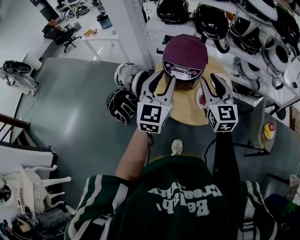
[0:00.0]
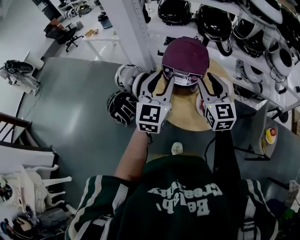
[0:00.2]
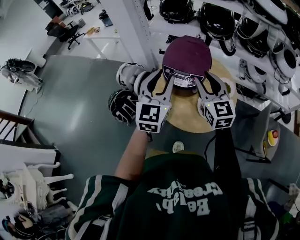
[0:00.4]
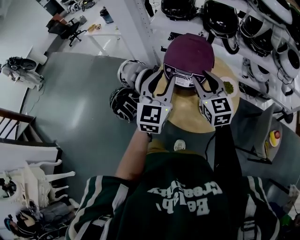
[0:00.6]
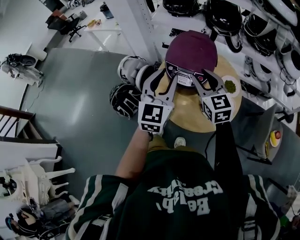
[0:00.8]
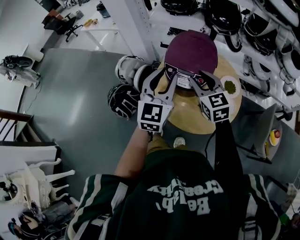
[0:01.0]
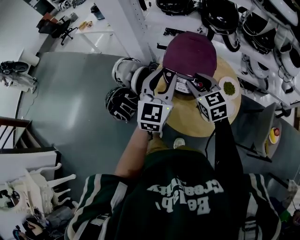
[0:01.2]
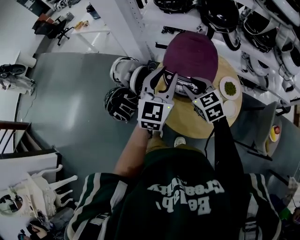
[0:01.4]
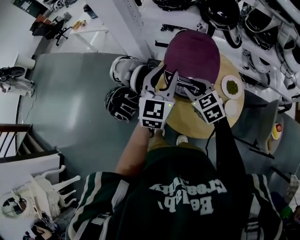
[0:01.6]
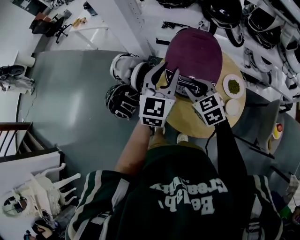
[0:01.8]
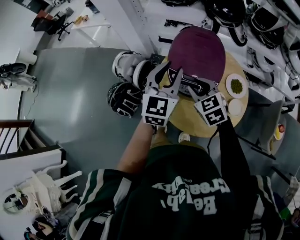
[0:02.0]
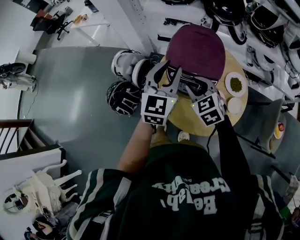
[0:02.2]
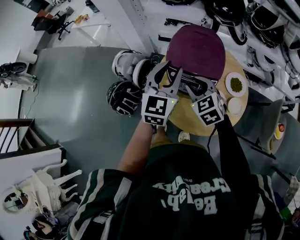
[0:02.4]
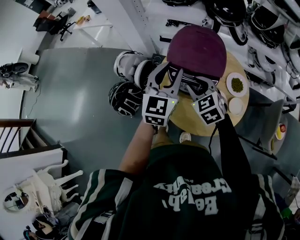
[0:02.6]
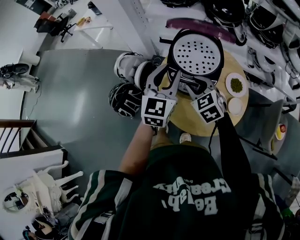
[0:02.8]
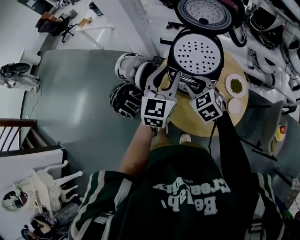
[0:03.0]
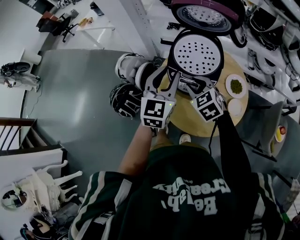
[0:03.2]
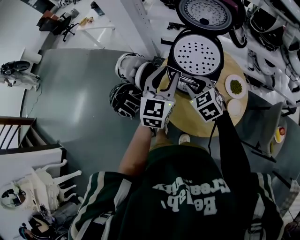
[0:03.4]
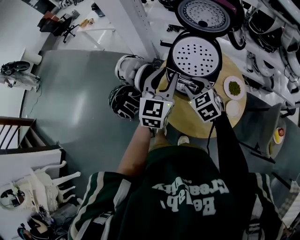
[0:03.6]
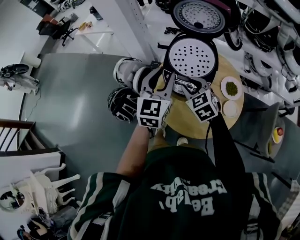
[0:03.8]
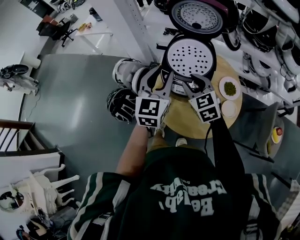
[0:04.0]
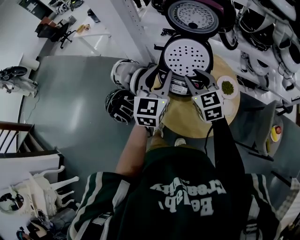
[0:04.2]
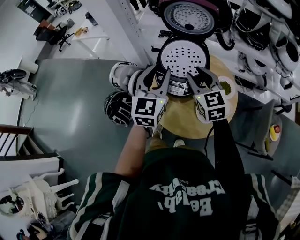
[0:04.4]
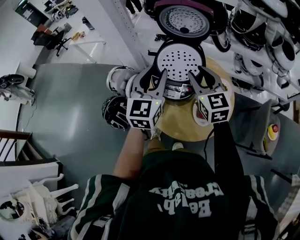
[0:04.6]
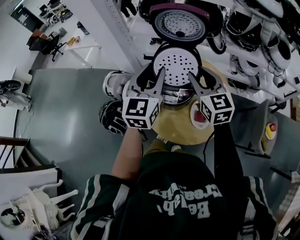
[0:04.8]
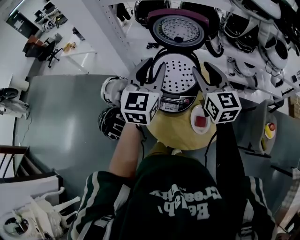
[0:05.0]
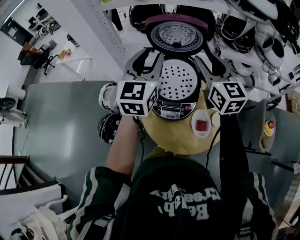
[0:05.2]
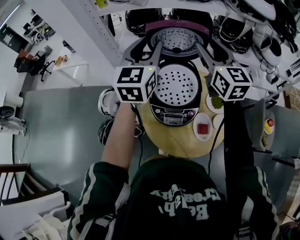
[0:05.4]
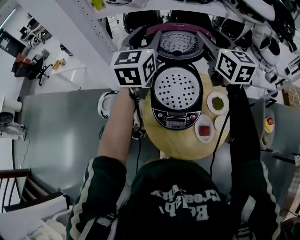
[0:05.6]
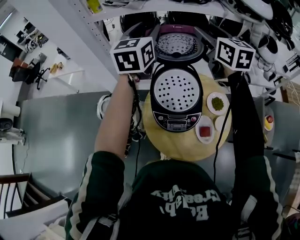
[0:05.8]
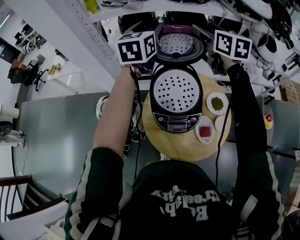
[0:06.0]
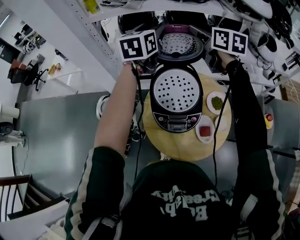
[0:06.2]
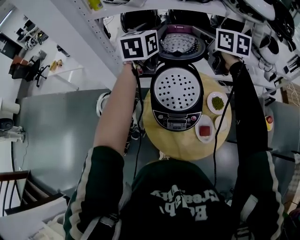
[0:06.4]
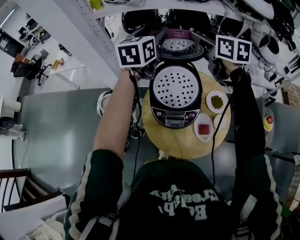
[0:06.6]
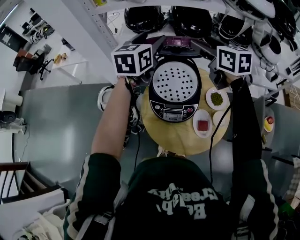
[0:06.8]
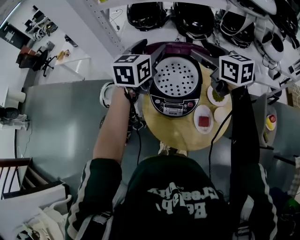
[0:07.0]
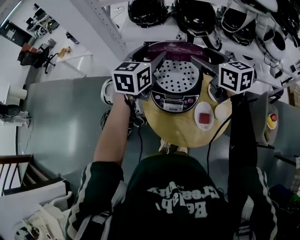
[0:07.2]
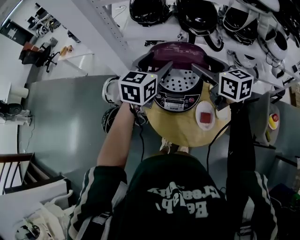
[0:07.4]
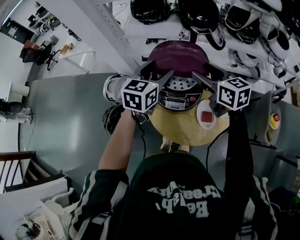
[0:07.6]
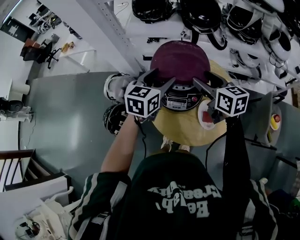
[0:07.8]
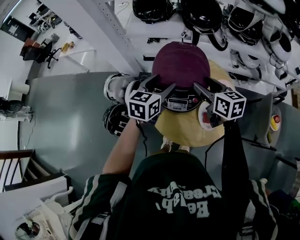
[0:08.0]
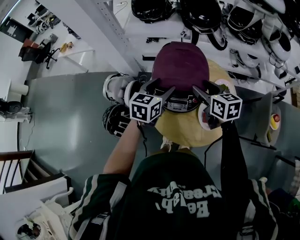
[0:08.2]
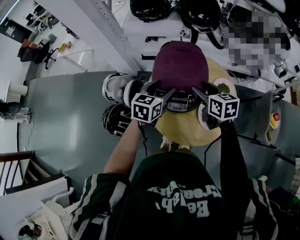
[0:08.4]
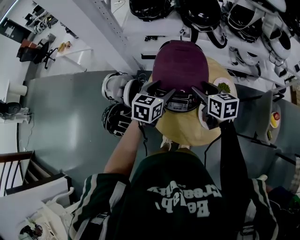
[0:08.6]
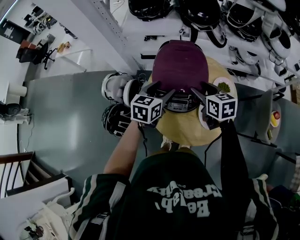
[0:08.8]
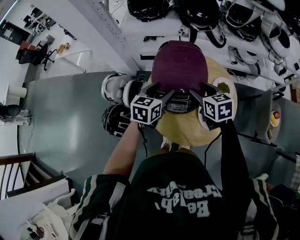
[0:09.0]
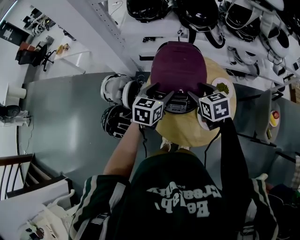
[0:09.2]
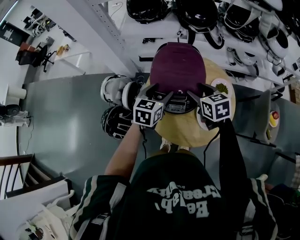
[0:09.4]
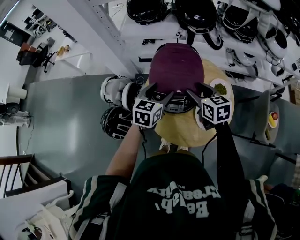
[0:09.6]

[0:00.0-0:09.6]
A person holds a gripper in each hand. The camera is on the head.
0:00.0 to 0:01.6: The right gripper goes about 25 cm downward, forward and to the left, and angles its fingers downward, by approximately 30 degrees; the left gripper heads forward, covering some 20 cm.
0:01.6 to 0:03.2: There are only small adjustments of the grippers.
0:03.2 to 0:04.8: The right gripper heads upward and to the right, covering about 20 cm, and changes its angle by about 40 degrees. Meanwhile the left gripper heads upward, covering about 10 cm.
0:04.8 to 0:06.4: The right gripper shifts some 25 cm forward and upward, rotates approximately 20 degrees, and opens, while the left gripper is displaced forward by some 30 cm, and opens its fingers.
0:06.4 to 0:08.0: The two grippers go roughly 30 cm backward and downward.
0:08.0 to 0:09.6: The left gripper heads downward, covering approximately 5 cm.

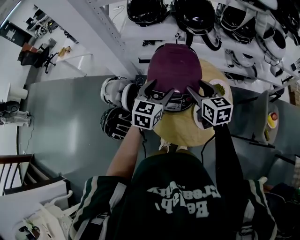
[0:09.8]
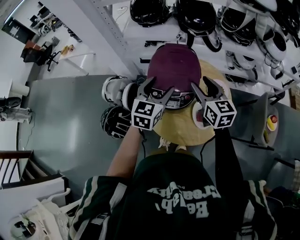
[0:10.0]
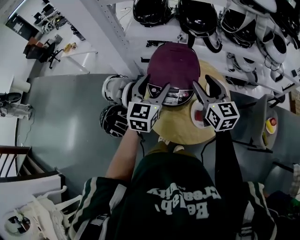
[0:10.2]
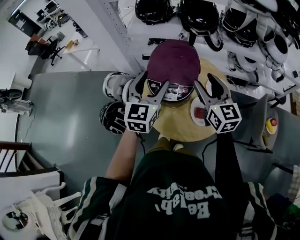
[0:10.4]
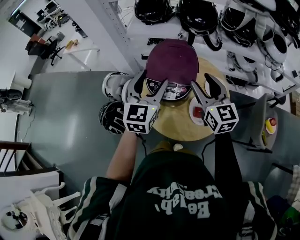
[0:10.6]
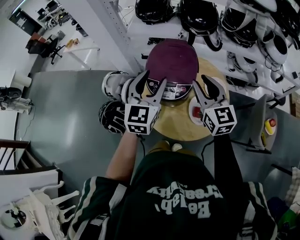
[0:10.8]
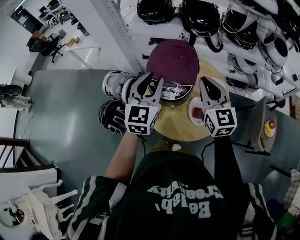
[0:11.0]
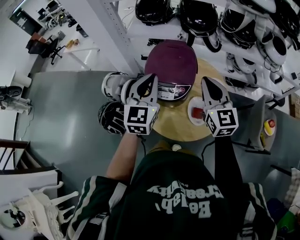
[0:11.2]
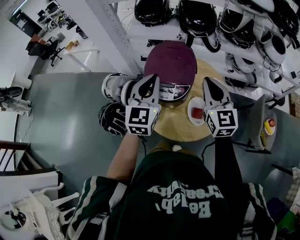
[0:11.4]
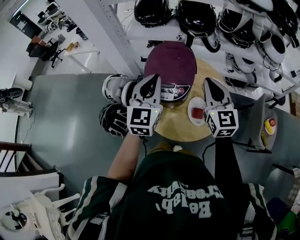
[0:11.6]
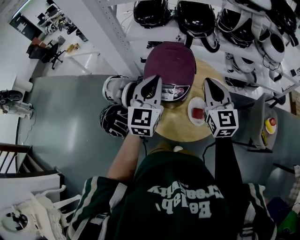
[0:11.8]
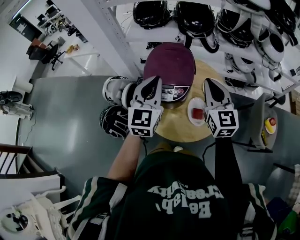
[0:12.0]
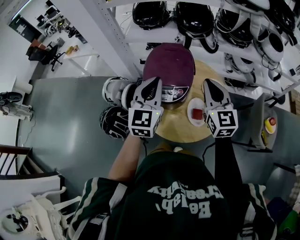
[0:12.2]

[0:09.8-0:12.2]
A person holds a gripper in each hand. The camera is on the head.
0:09.8 to 0:11.0: The grippers both shift upward and backward by about 10 cm. The right gripper rotates approximately 30 degrees, and closes, while the left gripper changes its angle by roughly 20 degrees, and closes up.
0:11.0 to 0:12.2: The left gripper closes its fingers.

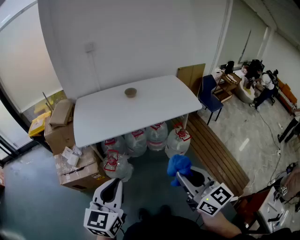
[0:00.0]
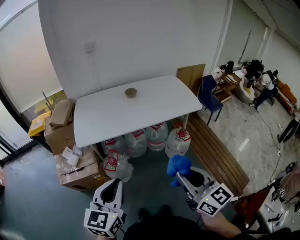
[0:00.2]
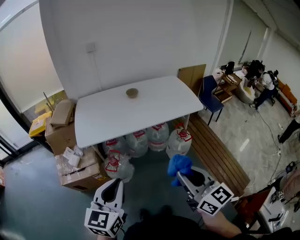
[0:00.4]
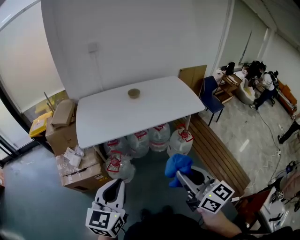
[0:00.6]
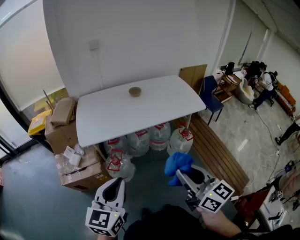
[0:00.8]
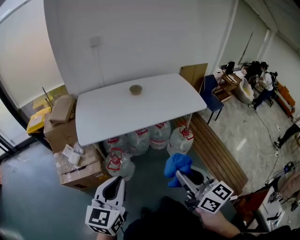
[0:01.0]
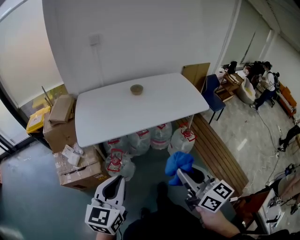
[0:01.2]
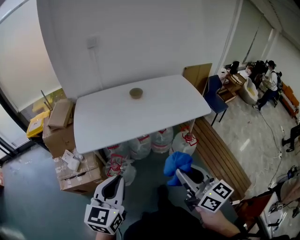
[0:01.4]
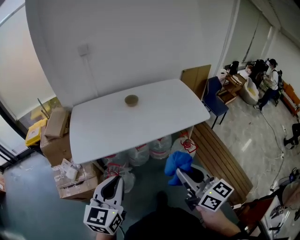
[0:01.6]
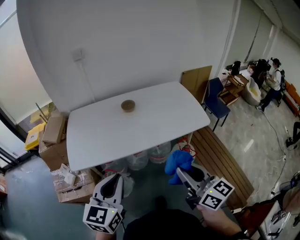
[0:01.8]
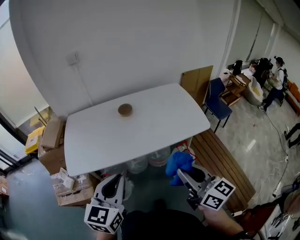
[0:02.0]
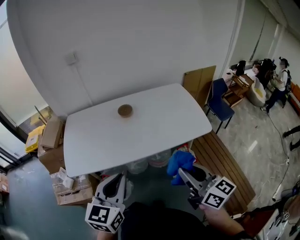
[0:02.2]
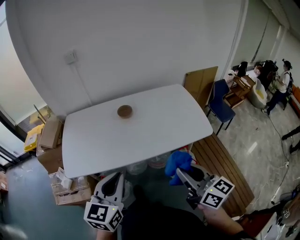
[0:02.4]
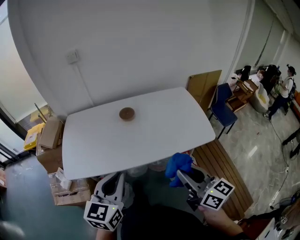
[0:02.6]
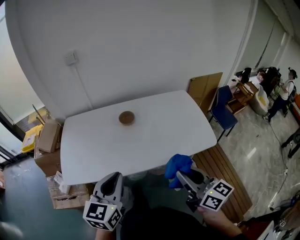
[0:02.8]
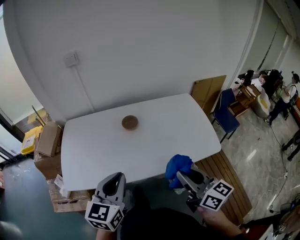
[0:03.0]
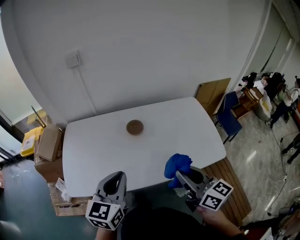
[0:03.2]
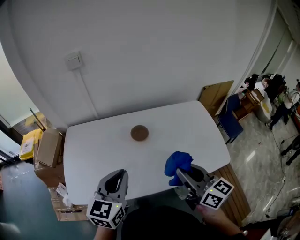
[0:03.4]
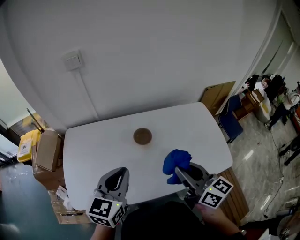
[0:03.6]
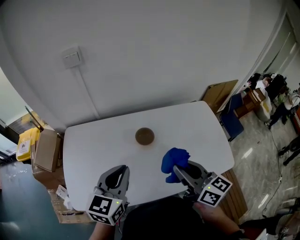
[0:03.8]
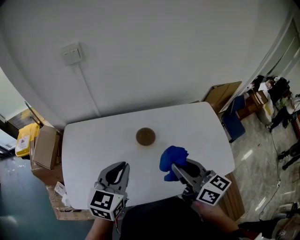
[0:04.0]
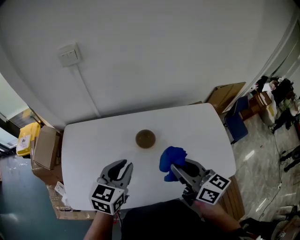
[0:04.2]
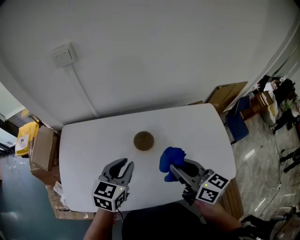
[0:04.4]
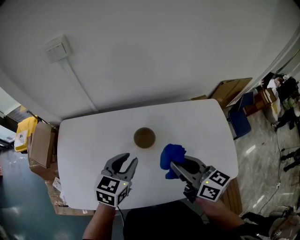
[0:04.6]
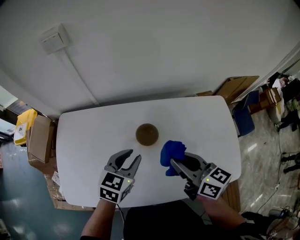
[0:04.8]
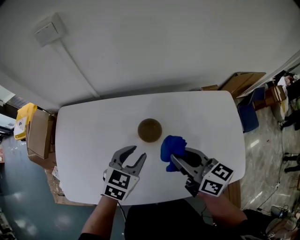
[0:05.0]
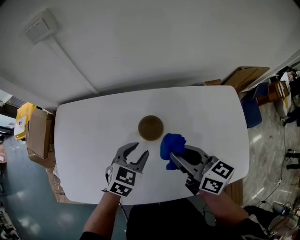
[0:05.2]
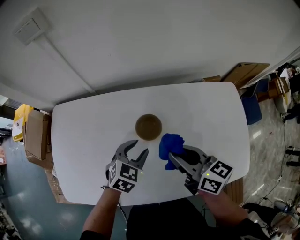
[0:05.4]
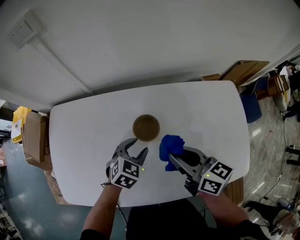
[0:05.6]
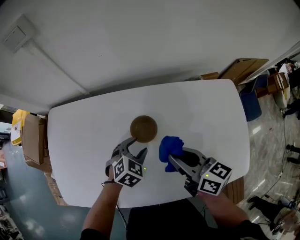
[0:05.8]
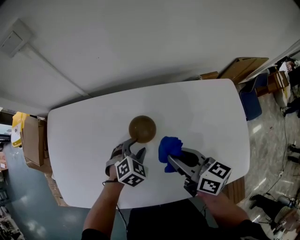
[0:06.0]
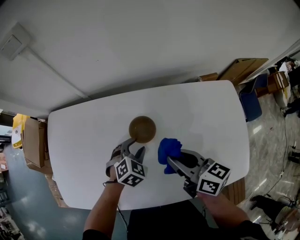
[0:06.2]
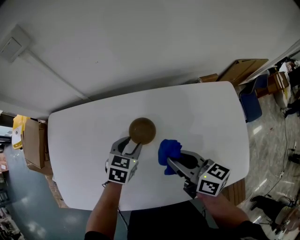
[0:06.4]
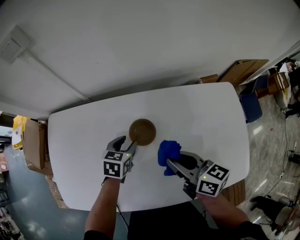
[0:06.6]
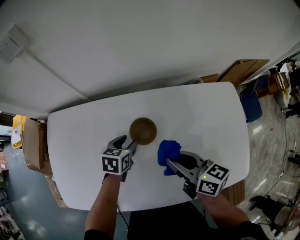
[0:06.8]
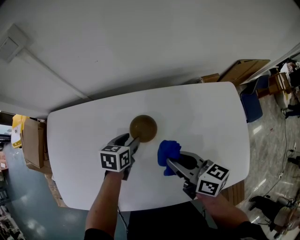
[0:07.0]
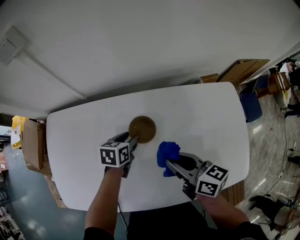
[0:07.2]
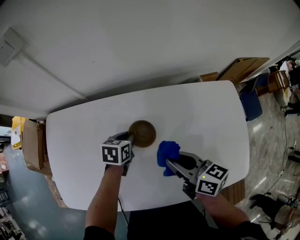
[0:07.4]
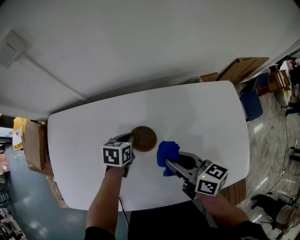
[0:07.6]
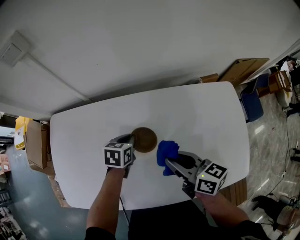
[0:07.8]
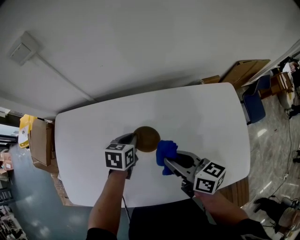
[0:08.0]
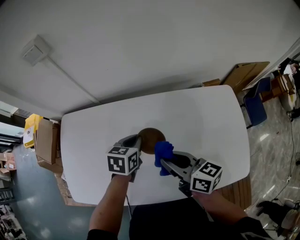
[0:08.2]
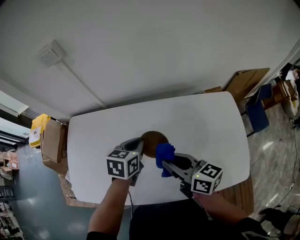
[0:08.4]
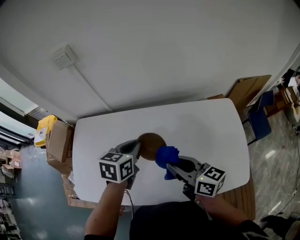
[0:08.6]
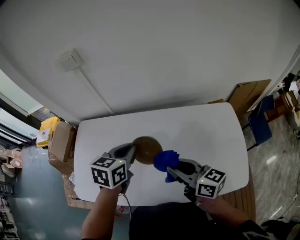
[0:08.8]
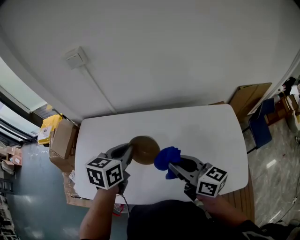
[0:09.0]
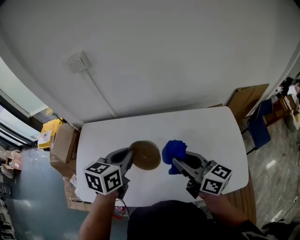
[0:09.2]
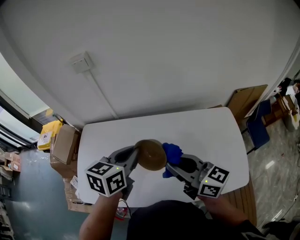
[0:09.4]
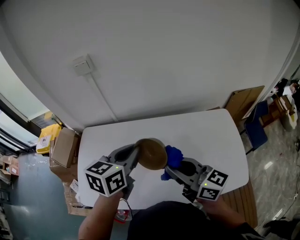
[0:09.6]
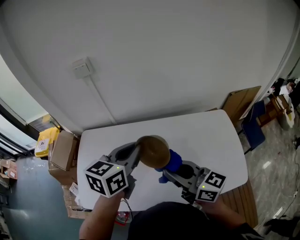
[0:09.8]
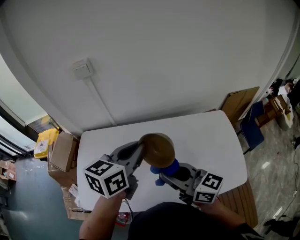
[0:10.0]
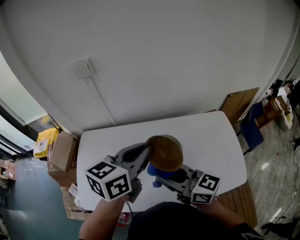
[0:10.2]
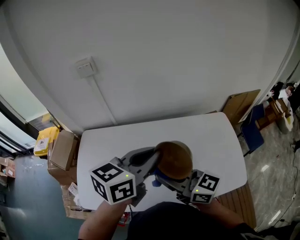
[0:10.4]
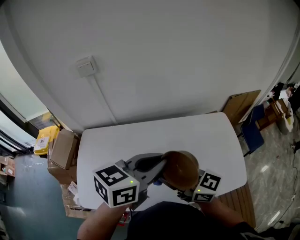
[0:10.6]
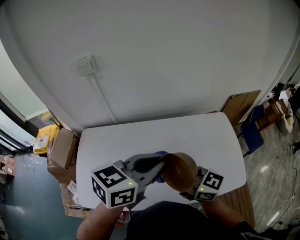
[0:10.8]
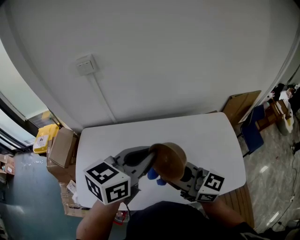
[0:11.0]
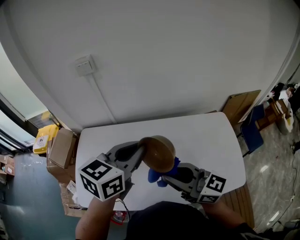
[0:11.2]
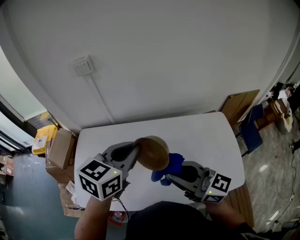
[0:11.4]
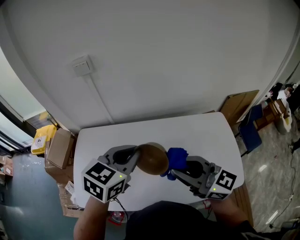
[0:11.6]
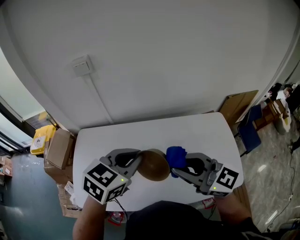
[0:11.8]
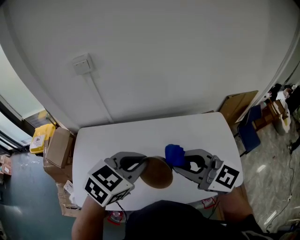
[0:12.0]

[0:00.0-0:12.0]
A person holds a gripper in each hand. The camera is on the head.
0:00.0 to 0:01.6: The grippers both shift forward by about 15 cm.
0:01.6 to 0:03.0: The left gripper shifts about 25 cm forward and to the right; the right gripper travels forward by about 25 cm.
0:03.0 to 0:04.4: Both grippers move forward, roughly 25 cm.
0:04.4 to 0:06.0: The right gripper shifts about 15 cm downward and forward. The left gripper travels downward by some 25 cm, rotates roughly 40 degrees, and opens up.
0:06.0 to 0:07.6: The left gripper travels forward by about 5 cm, twists approximately 50 degrees counterclockwise, seen from behind, and closes up.
0:07.6 to 0:09.0: The right gripper goes approximately 15 cm upward and backward, while the left gripper shifts some 25 cm upward, and turns by approximately 20 degrees.
0:09.0 to 0:10.4: The right gripper travels to the left and upward by approximately 10 cm, while the left gripper travels upward and backward by some 15 cm, and swivels about 30 degrees.
0:10.4 to 0:12.0: The left gripper shifts by some 5 cm, and turns by about 30 degrees, while the right gripper is displaced to the right by roughly 5 cm, and turns by about 30 degrees.
